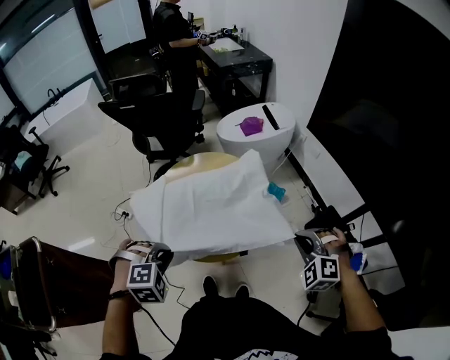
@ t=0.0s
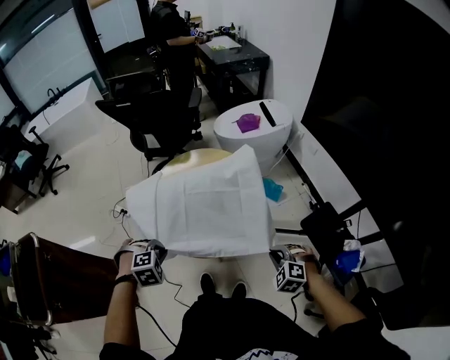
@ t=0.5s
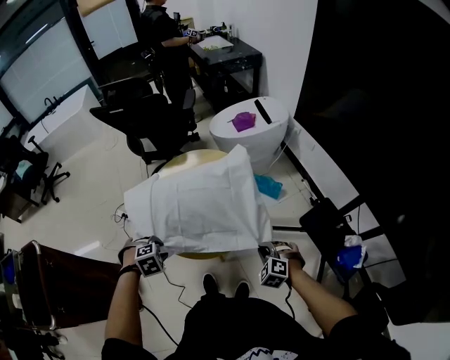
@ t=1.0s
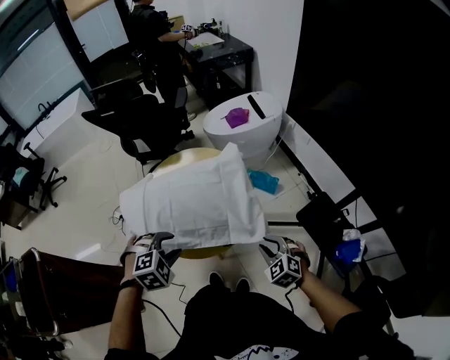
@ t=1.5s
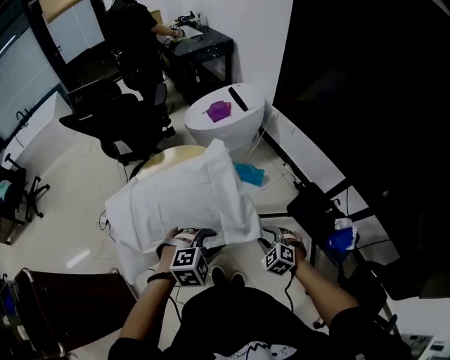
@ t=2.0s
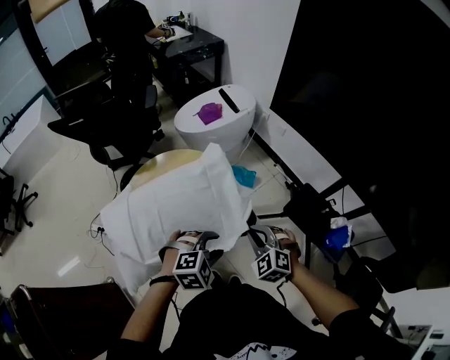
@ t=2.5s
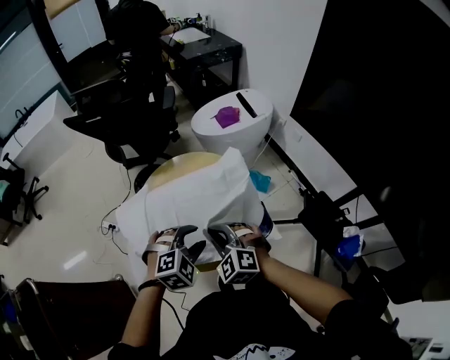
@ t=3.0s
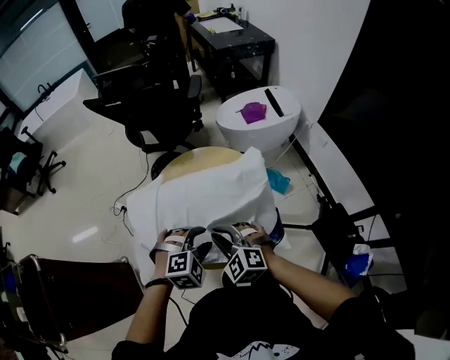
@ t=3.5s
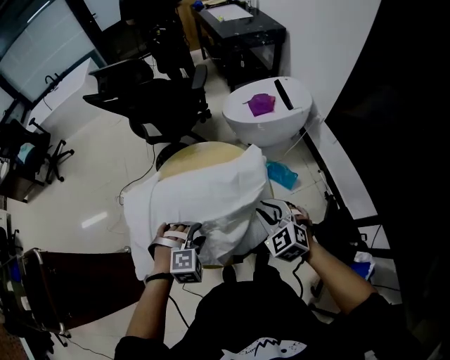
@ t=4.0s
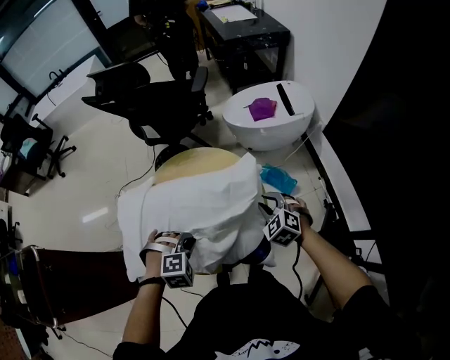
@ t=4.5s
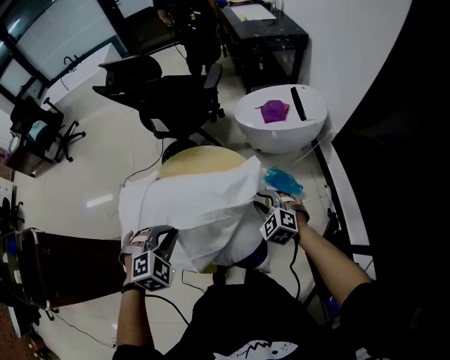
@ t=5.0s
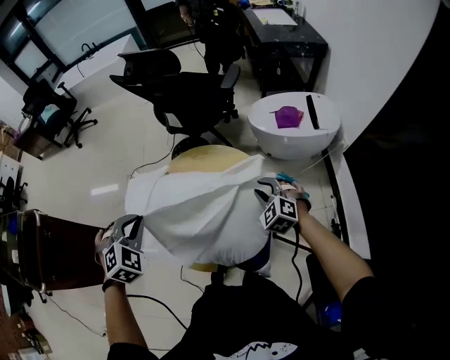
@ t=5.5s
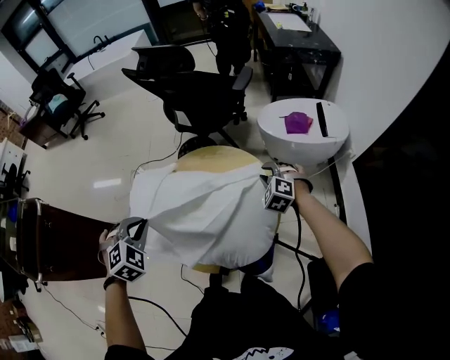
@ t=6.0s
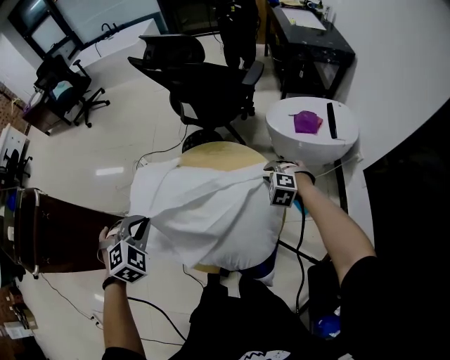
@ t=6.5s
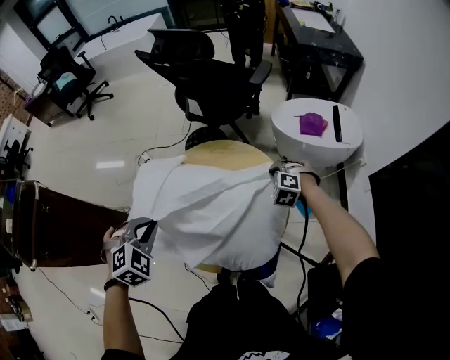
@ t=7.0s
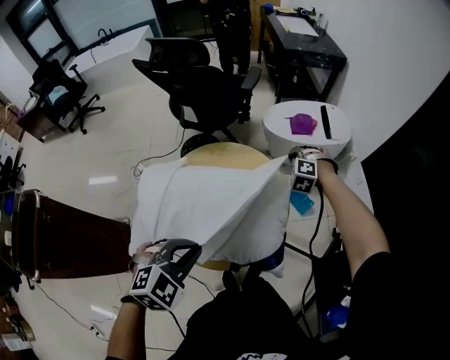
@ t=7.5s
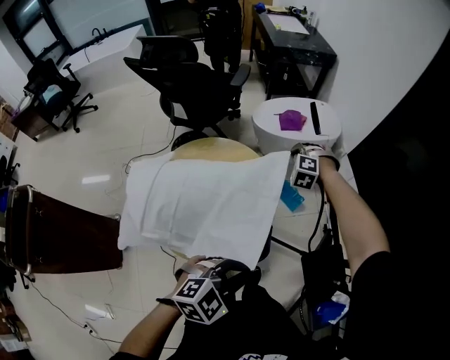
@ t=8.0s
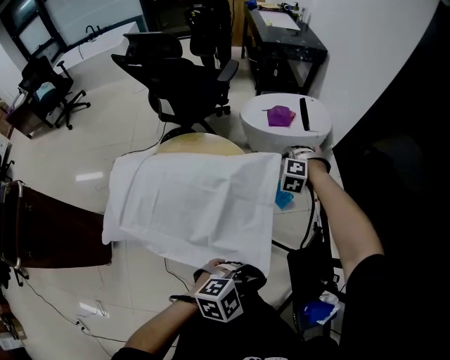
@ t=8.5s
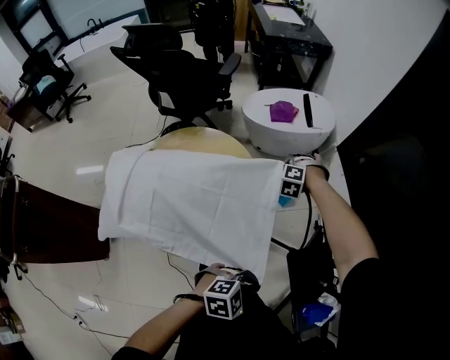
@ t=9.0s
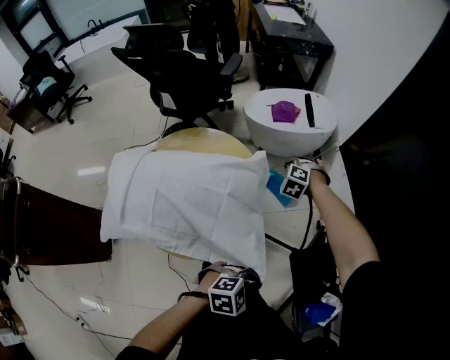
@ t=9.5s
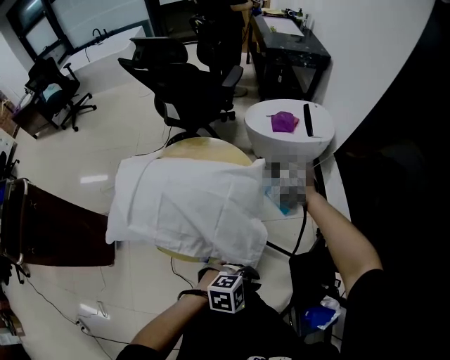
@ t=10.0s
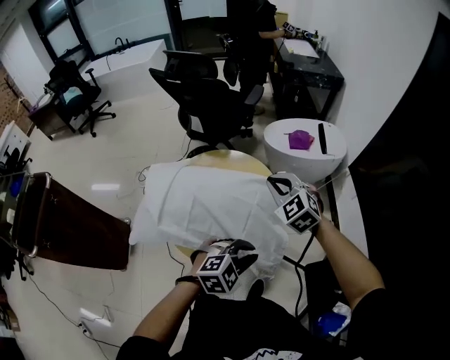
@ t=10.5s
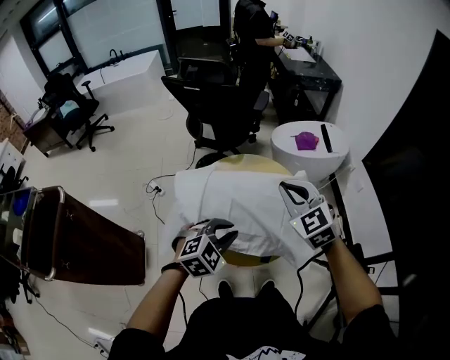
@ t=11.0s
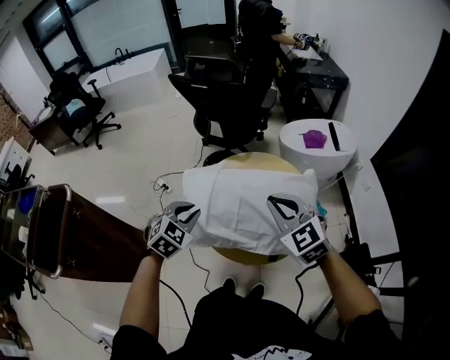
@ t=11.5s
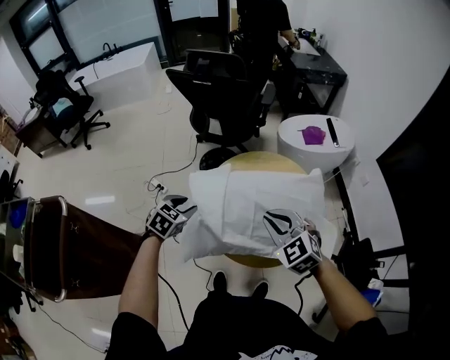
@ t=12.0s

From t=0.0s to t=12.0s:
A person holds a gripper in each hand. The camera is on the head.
From t=0.0s to t=2.0s: The left gripper changes place by roughly 20 cm, turns by about 20 degrees, and opens. Meanwhile the right gripper goes up and down, about 20 cm each way, reversing 2 times, swivels roughly 30 degrees, and opens its fingers.
From t=2.0s to t=4.0s: The right gripper ends up some 25 cm from where it was, and rotates roughly 20 degrees; the left gripper shifts by roughly 15 cm, and rotates about 20 degrees.
From t=4.0s to t=6.0s: The left gripper goes roughly 20 cm to the left and upward, rotates around the line of its fingers by some 40 degrees, counterclockwise from behind, and closes its fingers; the right gripper travels forward and downward by some 20 cm, and swivels roughly 30 degrees.
From t=6.0s to t=8.0s: The left gripper changes place by some 35 cm, and rotates roughly 50 degrees. The right gripper ends up roughly 10 cm from where it was, and closes up.
From t=8.0s to t=10.0s: The right gripper shifts roughly 5 cm backward, goes downward and returns, roughly 10 cm each way, and rotates approximately 30 degrees. Meanwhile the left gripper is displaced to the right and downward by approximately 15 cm.
From t=10.0s to t=12.0s: The right gripper moves roughly 40 cm, and changes its angle by some 20 degrees. The left gripper travels upward and back again, some 10 cm each way, swivels some 50 degrees, and opens.

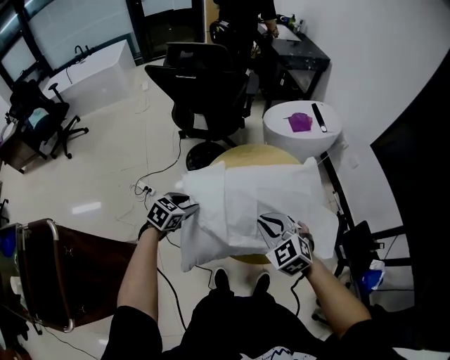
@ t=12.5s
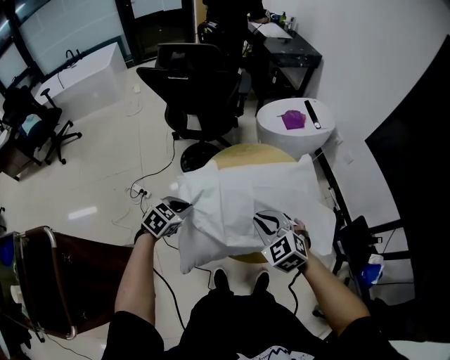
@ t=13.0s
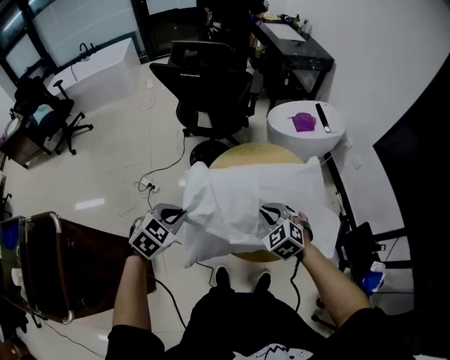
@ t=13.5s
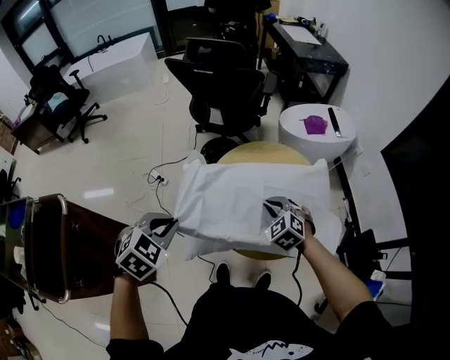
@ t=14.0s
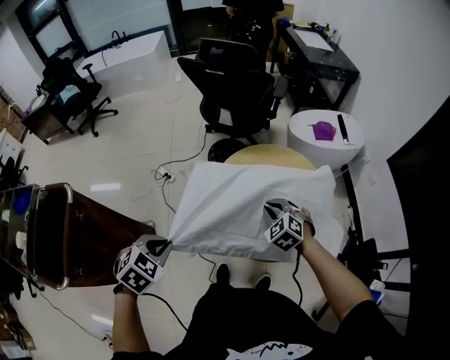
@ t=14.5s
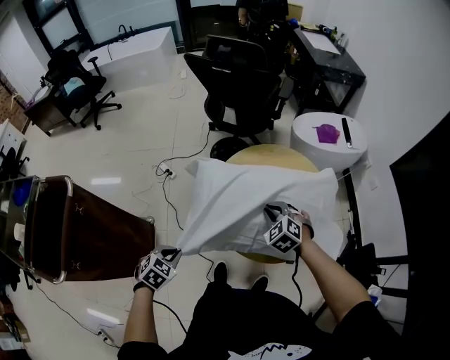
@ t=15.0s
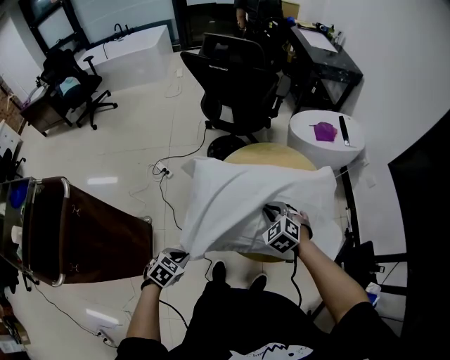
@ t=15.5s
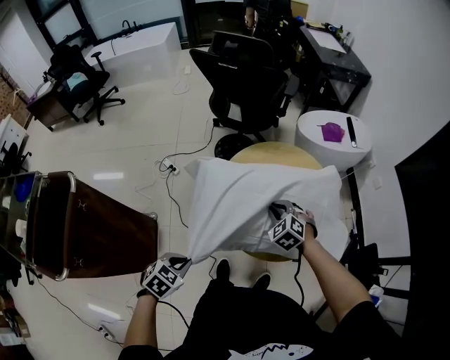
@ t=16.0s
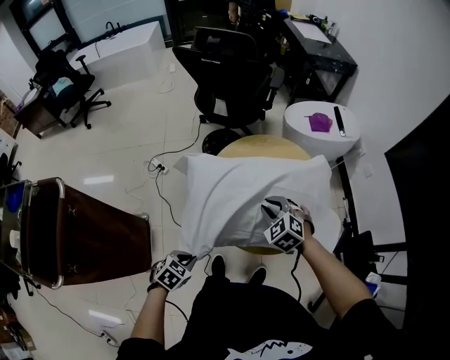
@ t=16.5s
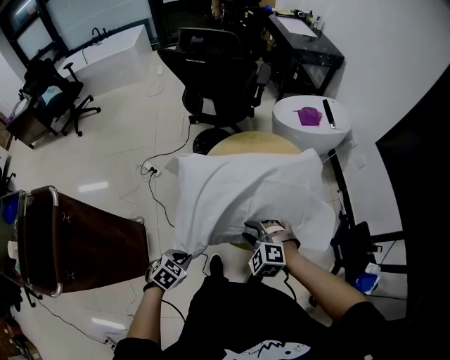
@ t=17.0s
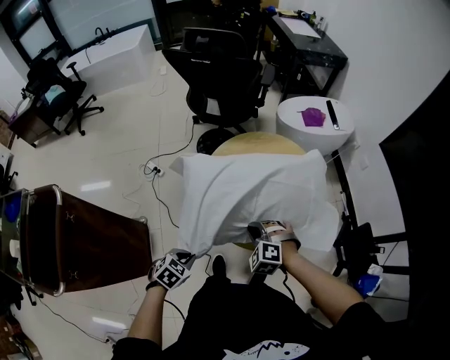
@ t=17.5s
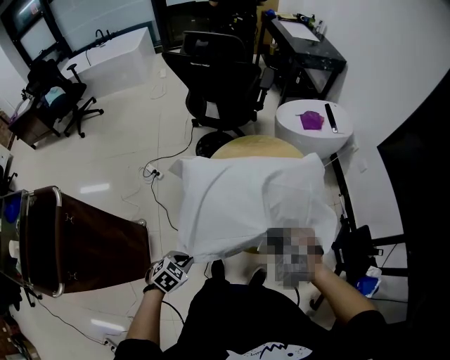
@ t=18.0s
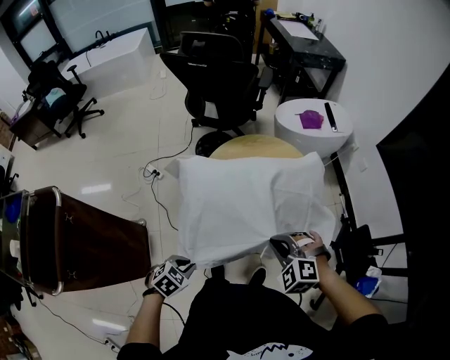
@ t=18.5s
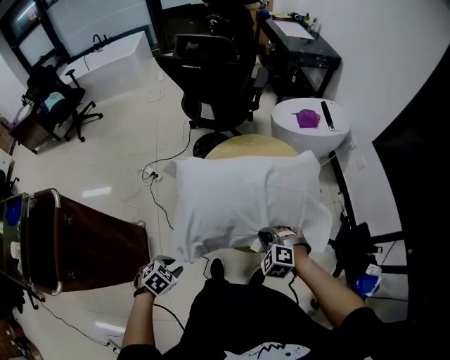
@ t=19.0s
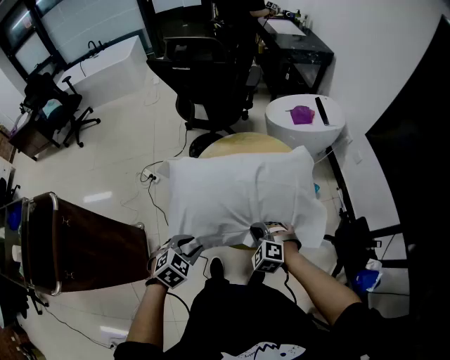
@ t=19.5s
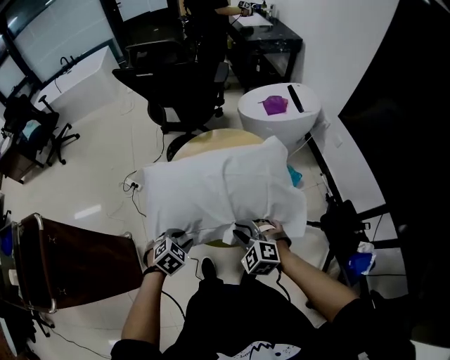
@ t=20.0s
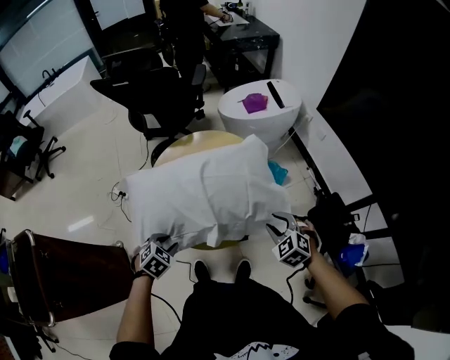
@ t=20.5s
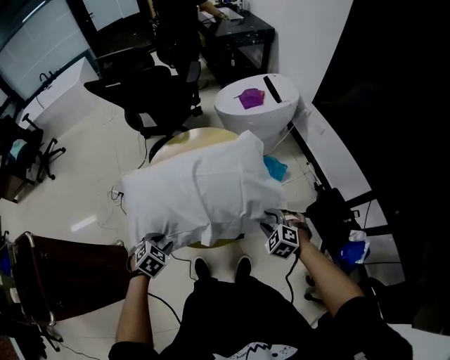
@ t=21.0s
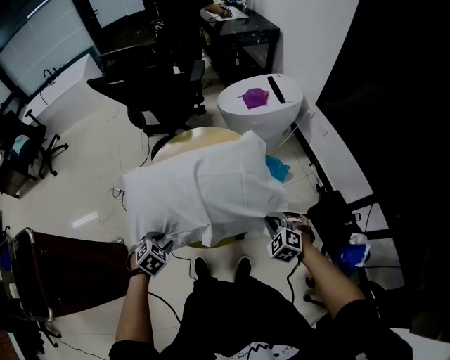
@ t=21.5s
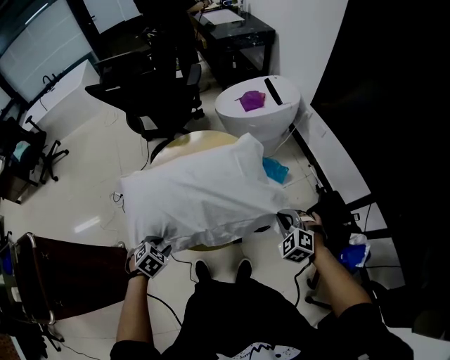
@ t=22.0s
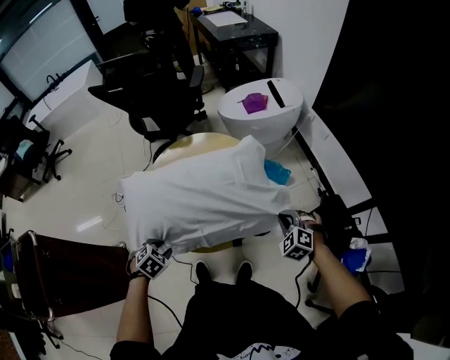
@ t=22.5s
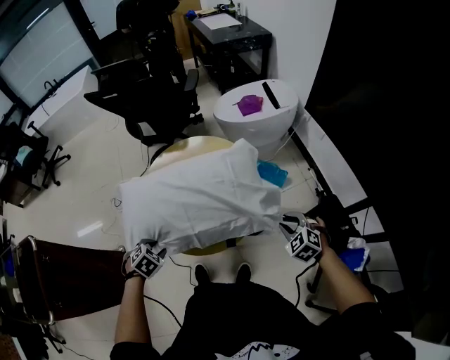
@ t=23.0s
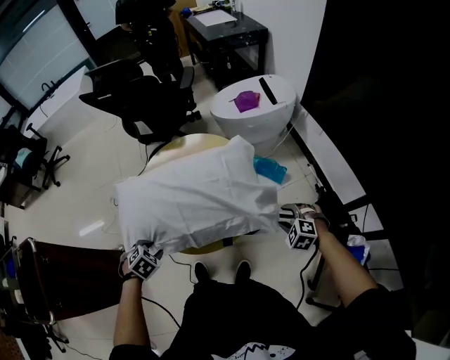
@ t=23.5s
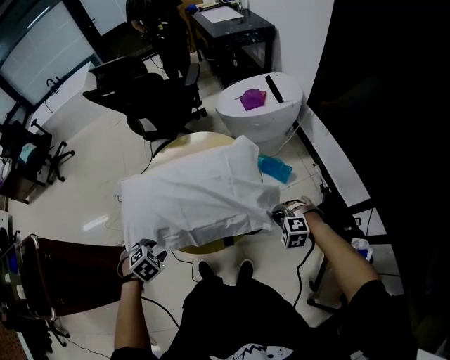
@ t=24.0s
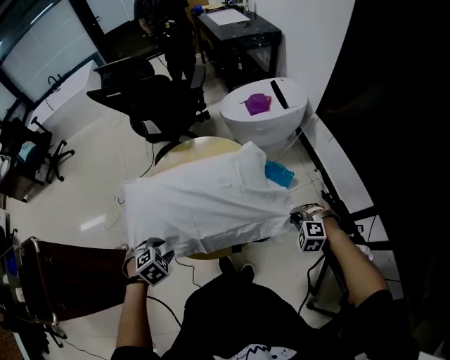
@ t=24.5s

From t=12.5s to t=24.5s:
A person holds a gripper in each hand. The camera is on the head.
From t=12.5s to t=14.5s: The right gripper travels downward by approximately 5 cm; the left gripper goes some 25 cm backward and upward, rotates roughly 20 degrees, and closes up.
From t=14.5s to t=16.5s: The left gripper goes up and down, roughly 20 cm each way, reversing 2 times.
From t=16.5s to t=18.5s: The right gripper moves backward and to the right, some 15 cm.
From t=18.5s to t=20.5s: The left gripper is displaced forward and to the right by approximately 15 cm, and opens. The right gripper is displaced to the right by roughly 20 cm, turns by roughly 30 degrees, and opens up.
From t=20.5s to t=22.5s: The right gripper travels to the right by roughly 5 cm, and closes.
From t=22.5s to t=24.5s: The right gripper ends up about 5 cm from where it was, rotates about 20 degrees, and opens, then closes again, while the left gripper goes roughly 5 cm upward.

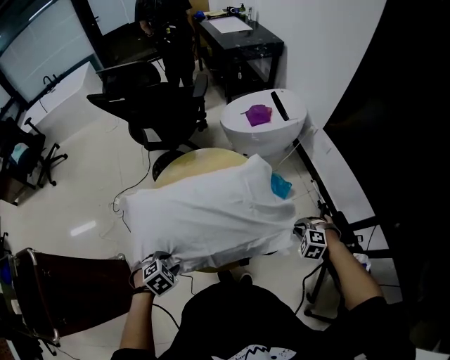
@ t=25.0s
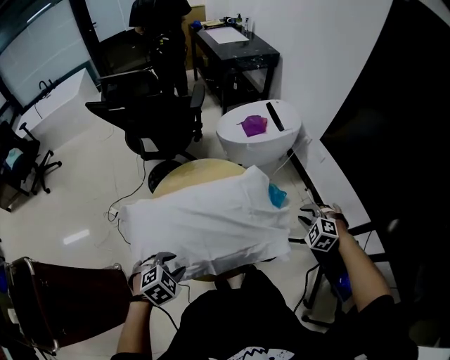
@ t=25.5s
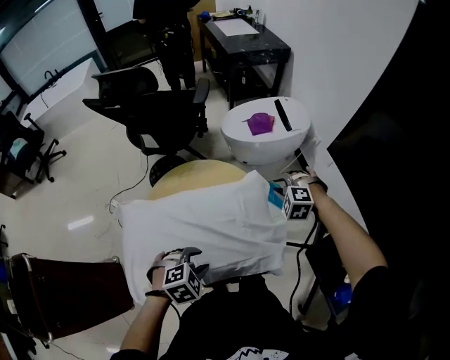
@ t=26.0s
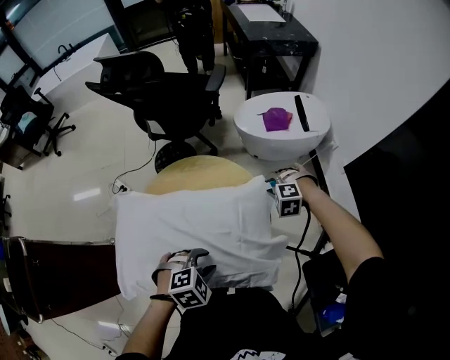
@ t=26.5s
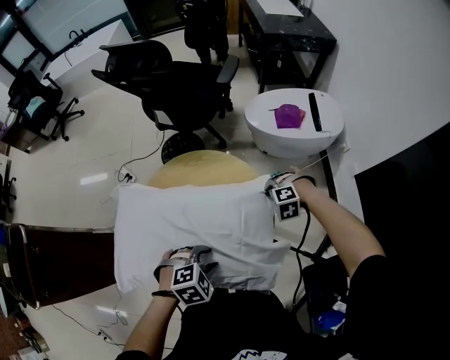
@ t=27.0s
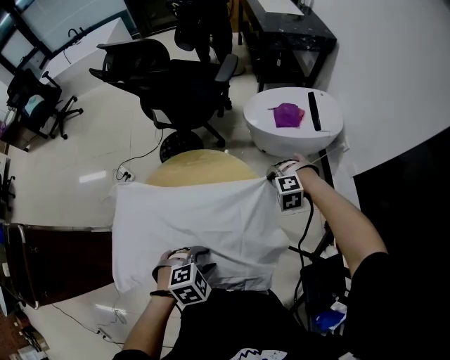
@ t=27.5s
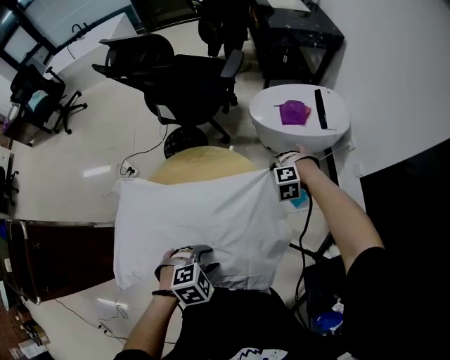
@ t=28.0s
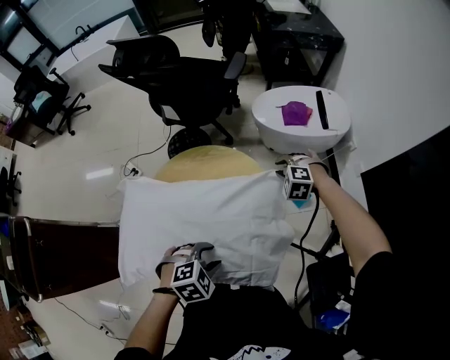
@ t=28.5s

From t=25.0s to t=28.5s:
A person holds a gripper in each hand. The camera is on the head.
From t=25.0s to t=27.0s: The left gripper ends up about 25 cm from where it was. Meanwhile the right gripper reaches approximately 10 cm upward, then returns, swivels roughly 40 degrees, and opens, then closes once more.
From t=27.0s to t=28.5s: The right gripper shifts by some 10 cm.
